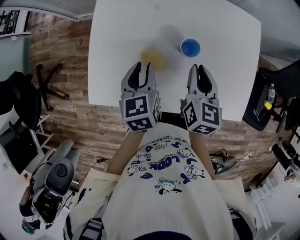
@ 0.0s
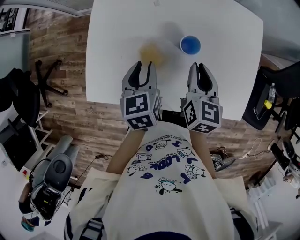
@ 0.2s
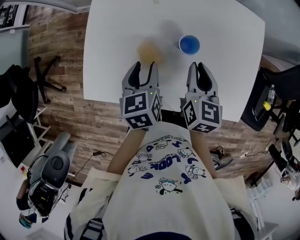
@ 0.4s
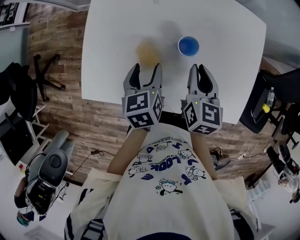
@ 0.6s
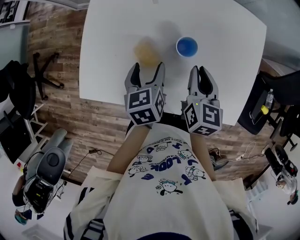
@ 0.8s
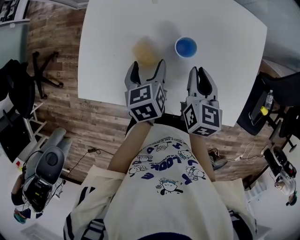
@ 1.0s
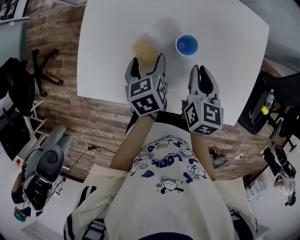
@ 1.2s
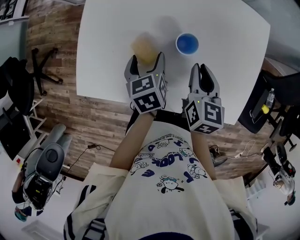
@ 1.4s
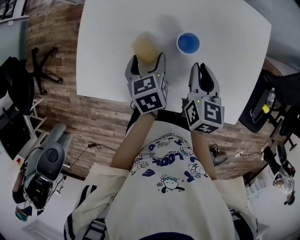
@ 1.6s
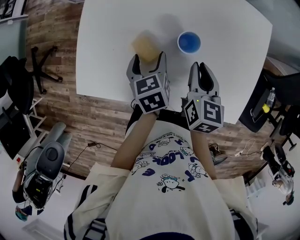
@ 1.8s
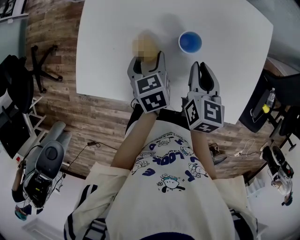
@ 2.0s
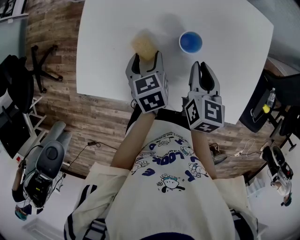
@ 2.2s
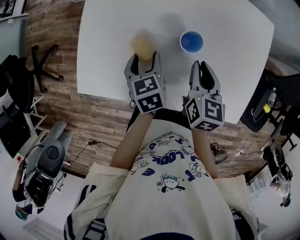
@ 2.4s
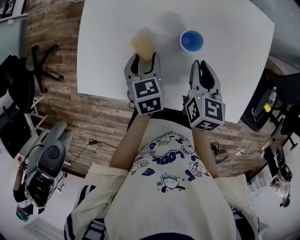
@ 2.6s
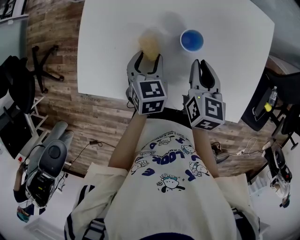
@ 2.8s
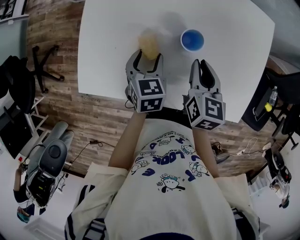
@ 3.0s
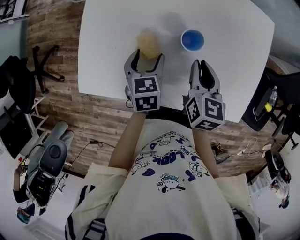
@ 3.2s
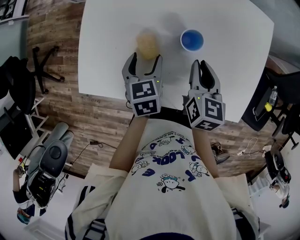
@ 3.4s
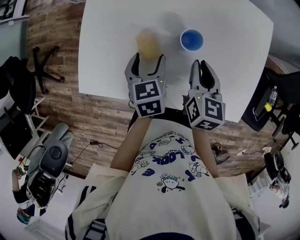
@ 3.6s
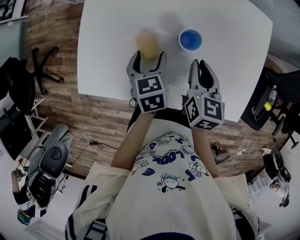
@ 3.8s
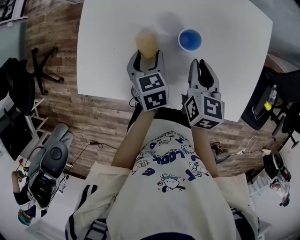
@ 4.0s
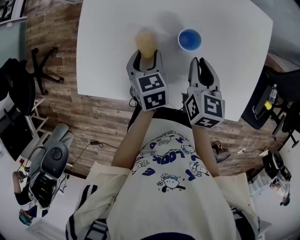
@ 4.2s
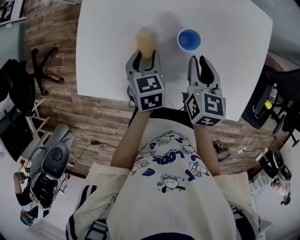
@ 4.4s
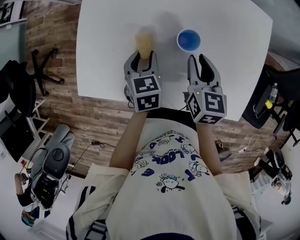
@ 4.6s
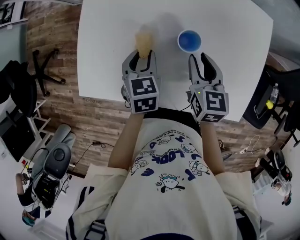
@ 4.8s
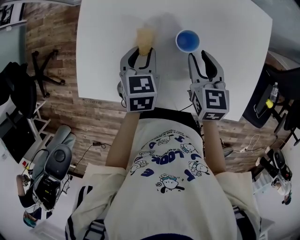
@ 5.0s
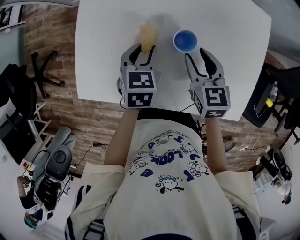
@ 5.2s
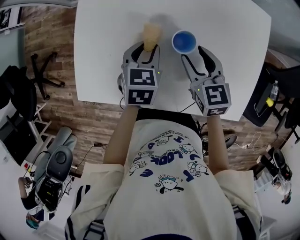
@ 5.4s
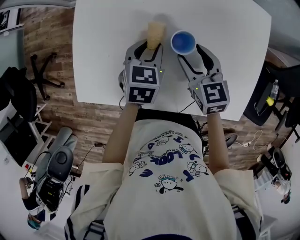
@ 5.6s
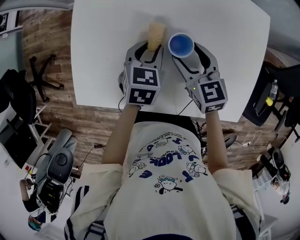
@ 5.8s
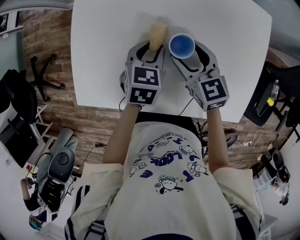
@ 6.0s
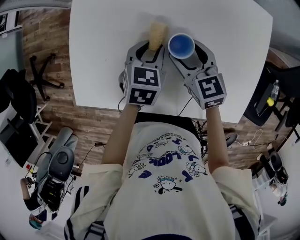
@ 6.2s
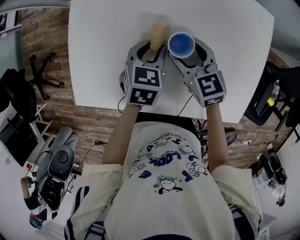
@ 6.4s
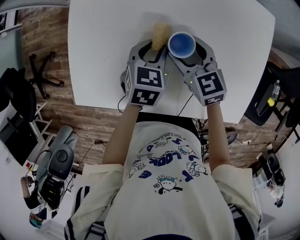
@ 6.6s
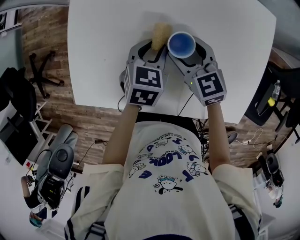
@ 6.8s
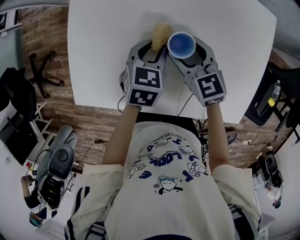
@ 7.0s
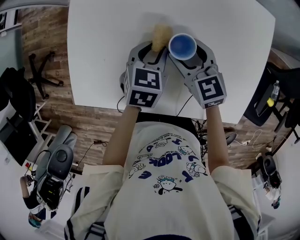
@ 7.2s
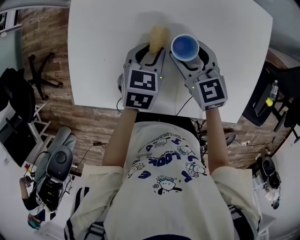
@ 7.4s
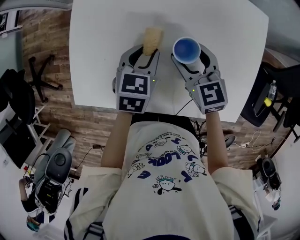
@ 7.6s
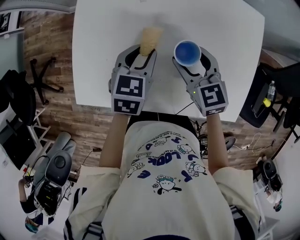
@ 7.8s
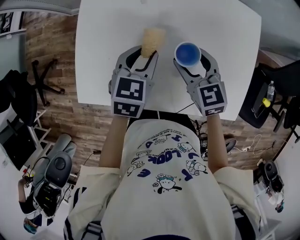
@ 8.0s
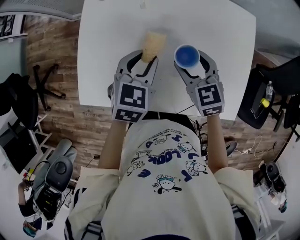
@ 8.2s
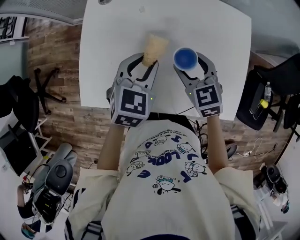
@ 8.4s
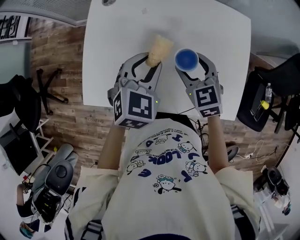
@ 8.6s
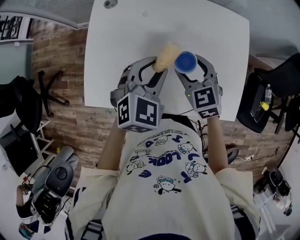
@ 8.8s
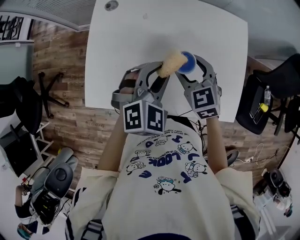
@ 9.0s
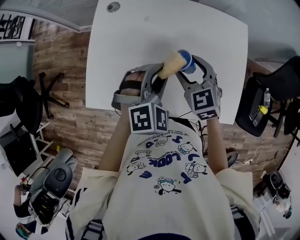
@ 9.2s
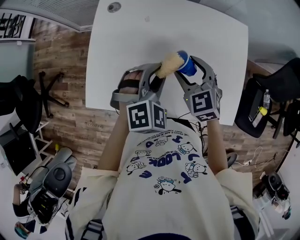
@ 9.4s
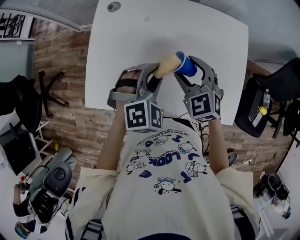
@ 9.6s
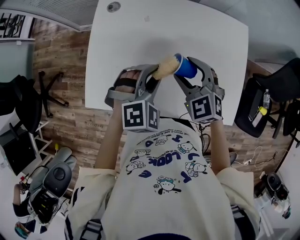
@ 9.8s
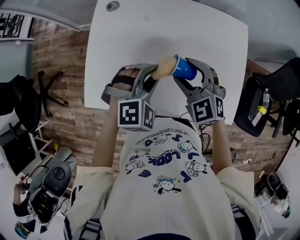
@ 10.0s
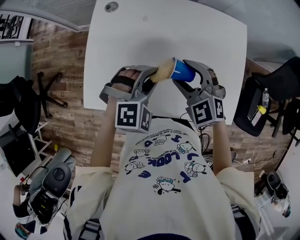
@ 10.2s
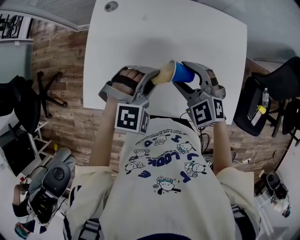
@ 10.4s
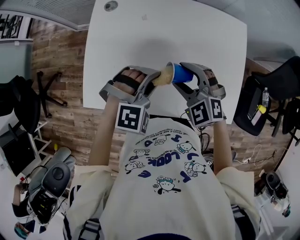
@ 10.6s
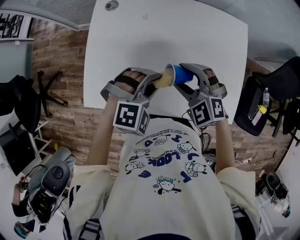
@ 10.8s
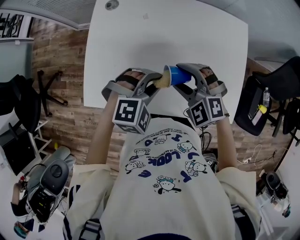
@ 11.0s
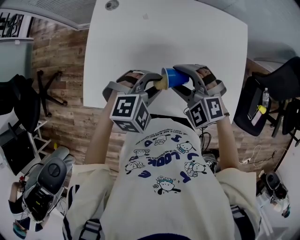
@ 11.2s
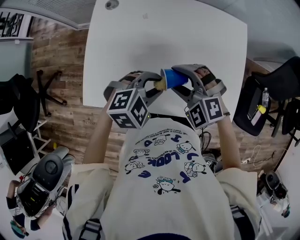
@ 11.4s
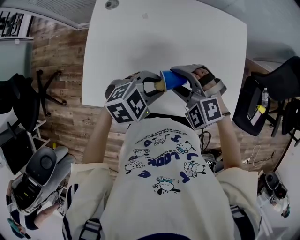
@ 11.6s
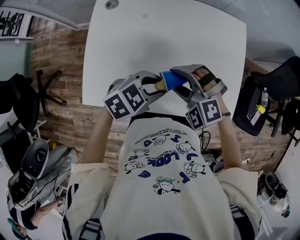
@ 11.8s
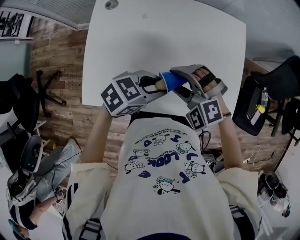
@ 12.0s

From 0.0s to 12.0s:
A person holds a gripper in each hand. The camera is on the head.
From 0.0s to 1.6s: The left gripper is displaced downward by roughly 10 cm, and opens its fingers.
From 1.6s to 3.0s: The left gripper swivels approximately 30 degrees.
From 3.0s to 4.4s: The grippers stay close to where they were, moving slightly.
From 4.4s to 6.0s: The right gripper ends up approximately 5 cm from where it was, swivels about 30 degrees, and opens, while the left gripper heads to the right, covering about 5 cm, and rotates roughly 20 degrees.
From 6.0s to 7.6s: The grippers stay close to where they were, moving slightly.
From 7.6s to 9.0s: The right gripper changes place by approximately 5 cm. The left gripper heads upward and backward, covering some 10 cm, and rotates around the line of its fingers by about 50 degrees, clockwise from behind.
From 9.0s to 10.4s: The left gripper turns by approximately 30 degrees. The right gripper rotates roughly 30 degrees.
From 10.4s to 12.0s: The right gripper turns by about 30 degrees, while the left gripper shifts by roughly 5 cm, and rotates roughly 70 degrees.

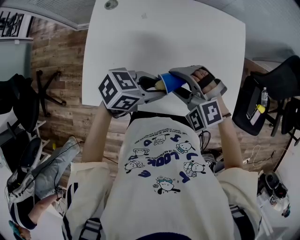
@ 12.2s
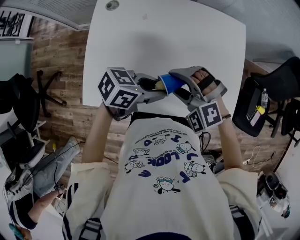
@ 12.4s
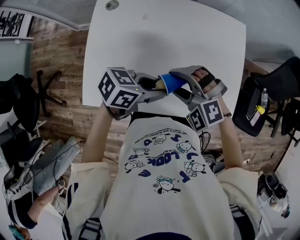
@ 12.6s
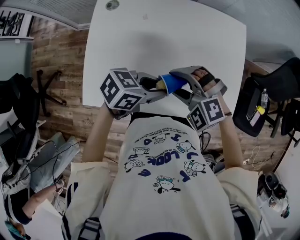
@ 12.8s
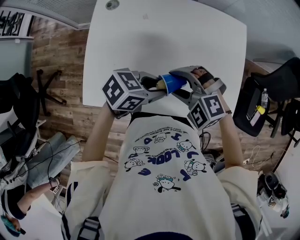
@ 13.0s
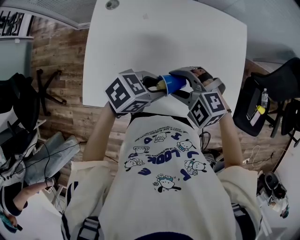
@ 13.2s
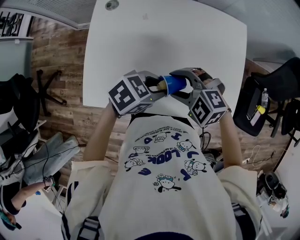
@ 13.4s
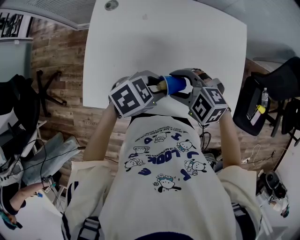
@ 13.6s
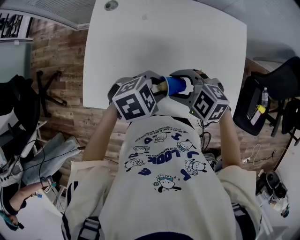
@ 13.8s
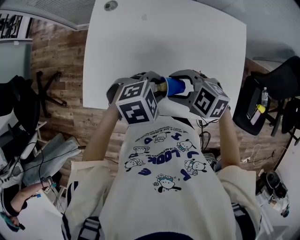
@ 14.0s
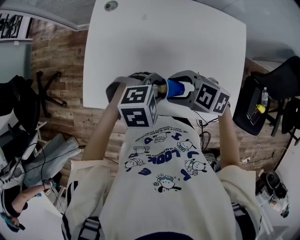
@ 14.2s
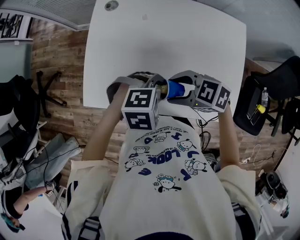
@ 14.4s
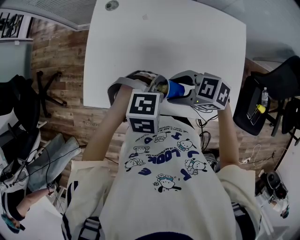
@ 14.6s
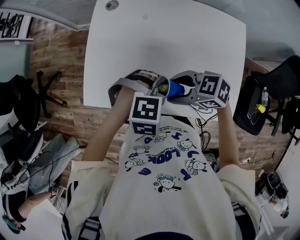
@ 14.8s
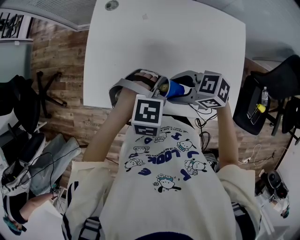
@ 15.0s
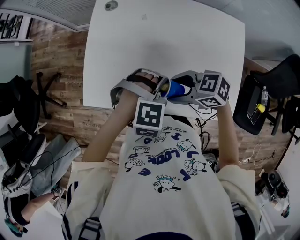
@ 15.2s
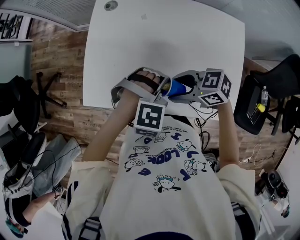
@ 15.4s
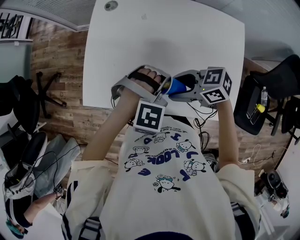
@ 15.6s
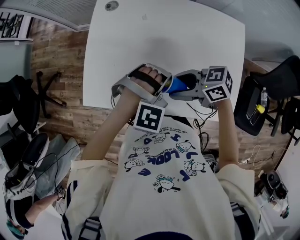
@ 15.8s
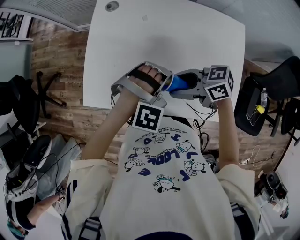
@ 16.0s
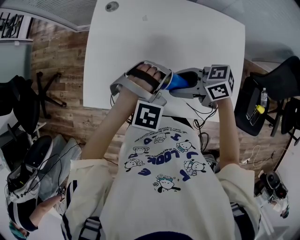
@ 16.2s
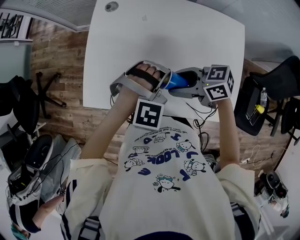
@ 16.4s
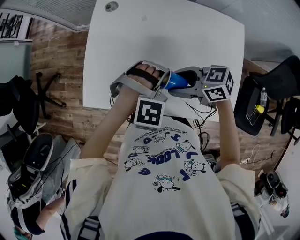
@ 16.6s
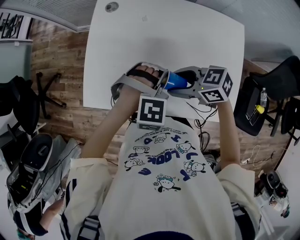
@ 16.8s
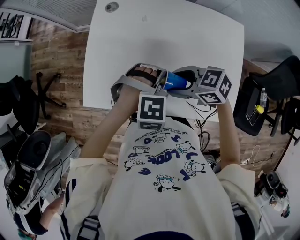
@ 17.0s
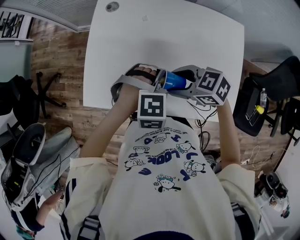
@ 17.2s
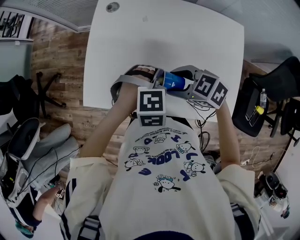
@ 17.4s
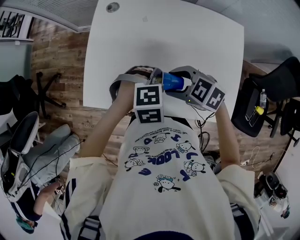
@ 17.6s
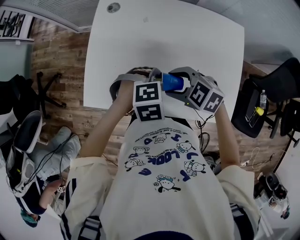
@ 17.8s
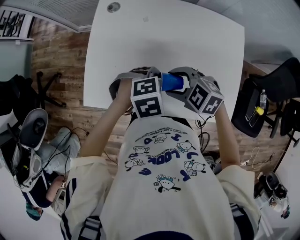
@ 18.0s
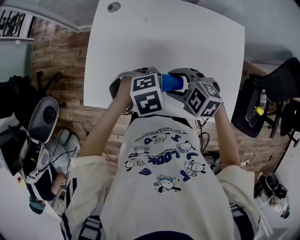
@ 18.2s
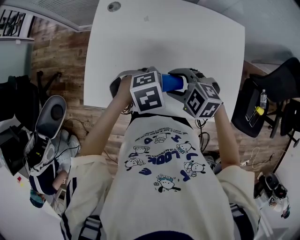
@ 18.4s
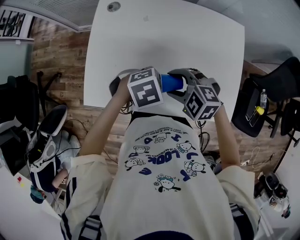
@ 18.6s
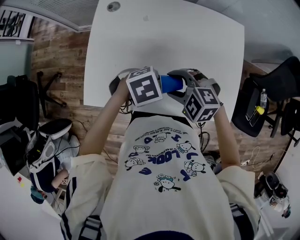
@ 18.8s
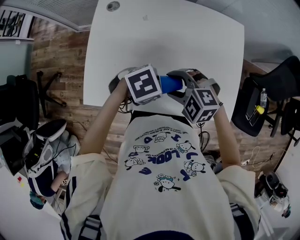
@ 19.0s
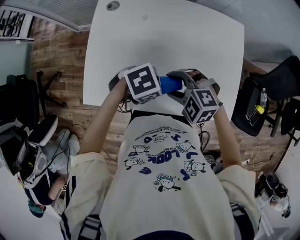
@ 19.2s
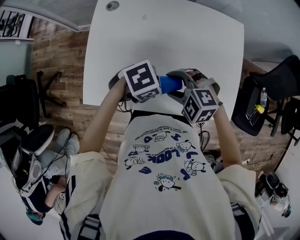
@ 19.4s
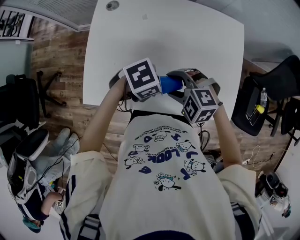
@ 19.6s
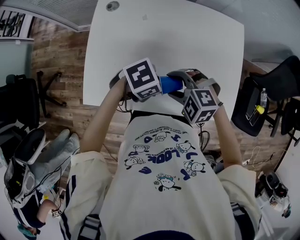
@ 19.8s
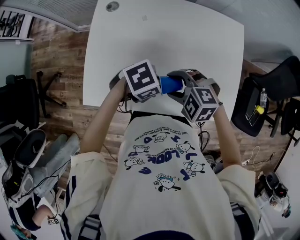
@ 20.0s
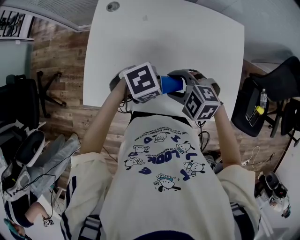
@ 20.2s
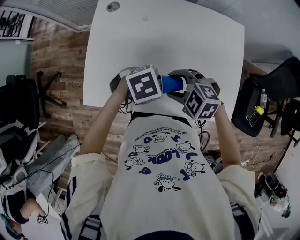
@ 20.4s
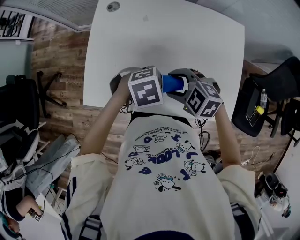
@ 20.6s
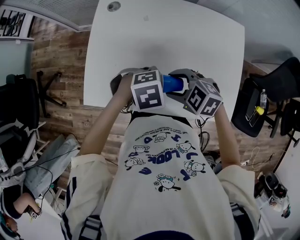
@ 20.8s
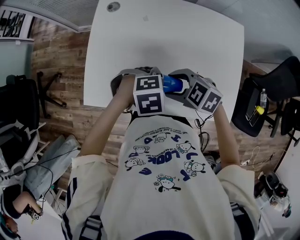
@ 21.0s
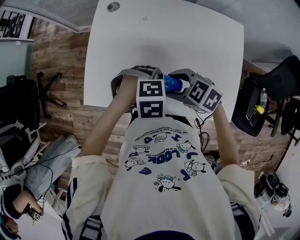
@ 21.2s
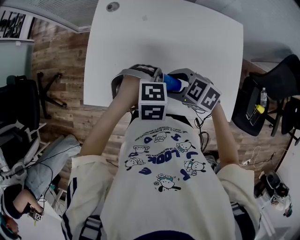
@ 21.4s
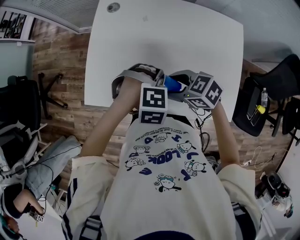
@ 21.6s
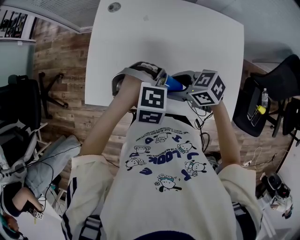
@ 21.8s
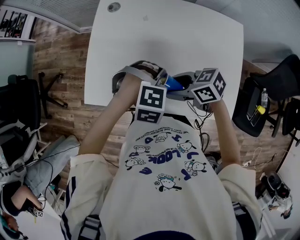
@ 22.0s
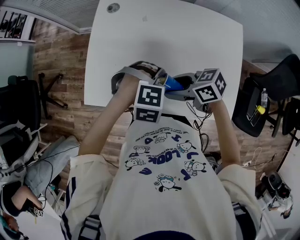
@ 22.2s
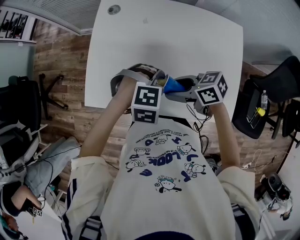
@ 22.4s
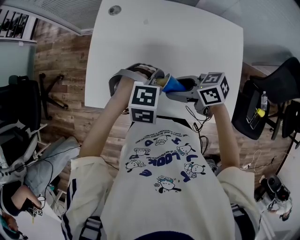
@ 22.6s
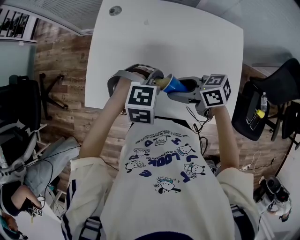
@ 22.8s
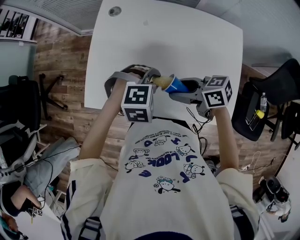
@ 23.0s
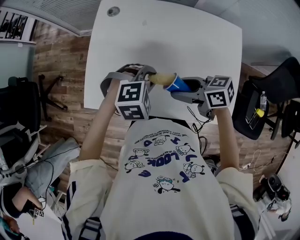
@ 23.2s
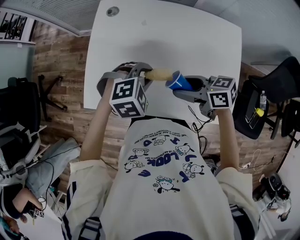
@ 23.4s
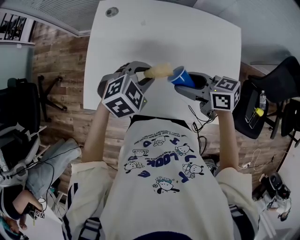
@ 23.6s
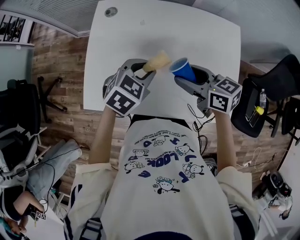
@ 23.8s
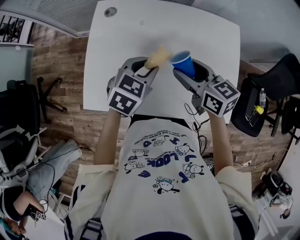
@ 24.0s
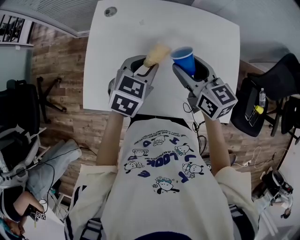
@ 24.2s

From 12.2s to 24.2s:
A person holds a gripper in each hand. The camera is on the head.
From 12.2s to 13.8s: The right gripper turns by about 40 degrees; the left gripper turns by about 30 degrees.
From 13.8s to 15.2s: The left gripper turns by some 50 degrees; the right gripper changes its angle by some 30 degrees.
From 16.6s to 18.2s: The right gripper rotates some 50 degrees, while the left gripper changes place by approximately 5 cm, and swivels roughly 50 degrees.
From 18.2s to 19.8s: The left gripper swivels about 30 degrees.
From 19.8s to 21.2s: The left gripper changes its angle by roughly 40 degrees. Meanwhile the right gripper swivels roughly 30 degrees.
From 21.2s to 22.6s: The right gripper changes its angle by about 40 degrees.
From 22.6s to 24.2s: The left gripper changes place by roughly 10 cm, and twists some 60 degrees counterclockwise, seen from behind; the right gripper shifts by about 15 cm, and rotates approximately 50 degrees.
